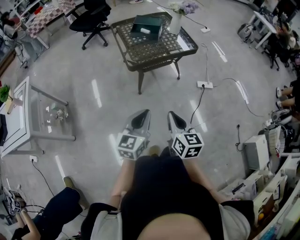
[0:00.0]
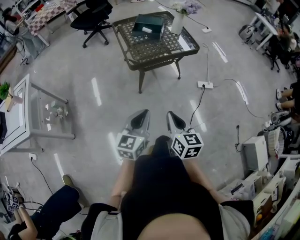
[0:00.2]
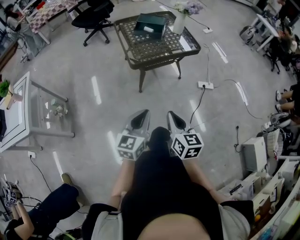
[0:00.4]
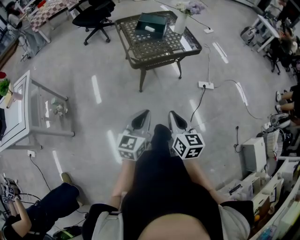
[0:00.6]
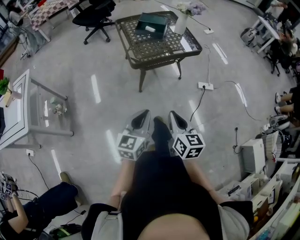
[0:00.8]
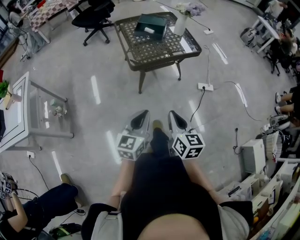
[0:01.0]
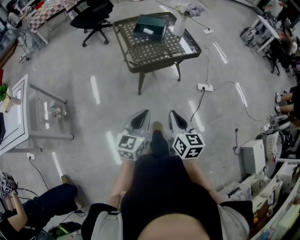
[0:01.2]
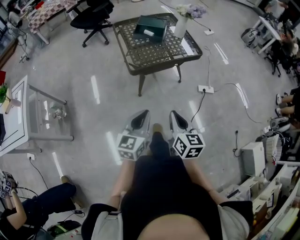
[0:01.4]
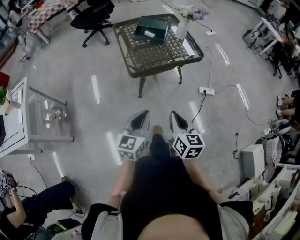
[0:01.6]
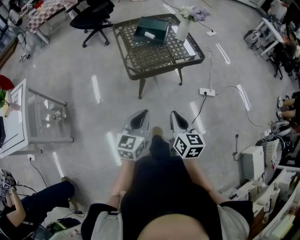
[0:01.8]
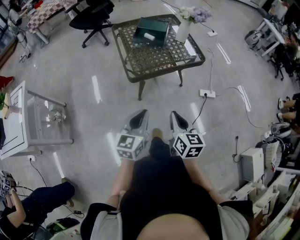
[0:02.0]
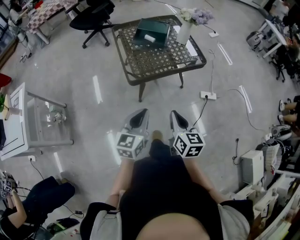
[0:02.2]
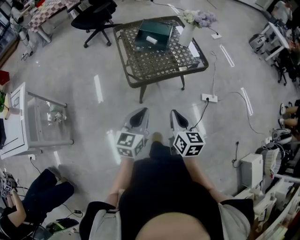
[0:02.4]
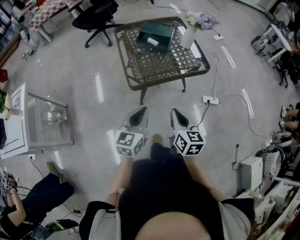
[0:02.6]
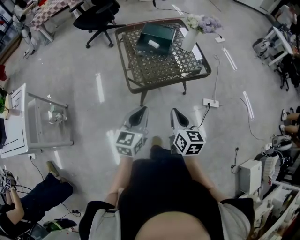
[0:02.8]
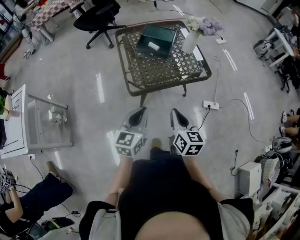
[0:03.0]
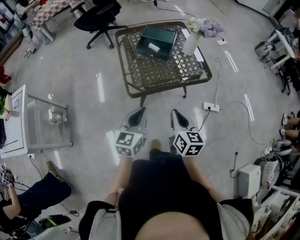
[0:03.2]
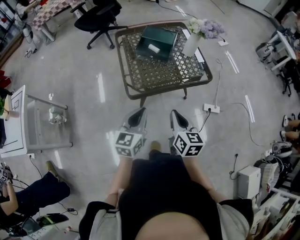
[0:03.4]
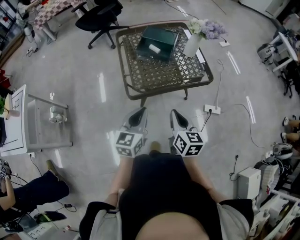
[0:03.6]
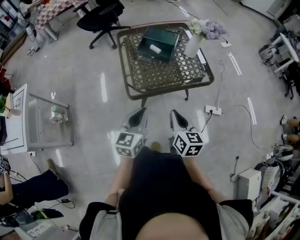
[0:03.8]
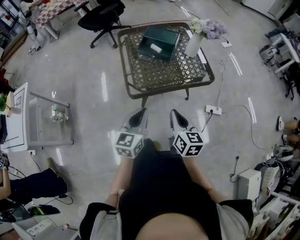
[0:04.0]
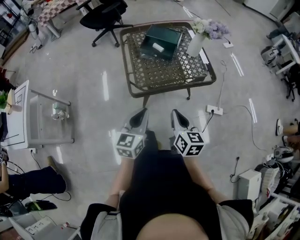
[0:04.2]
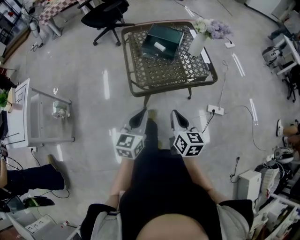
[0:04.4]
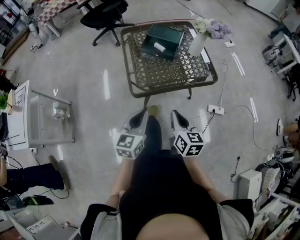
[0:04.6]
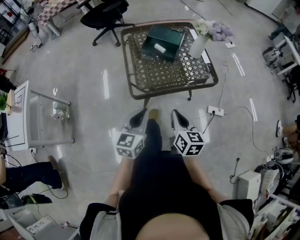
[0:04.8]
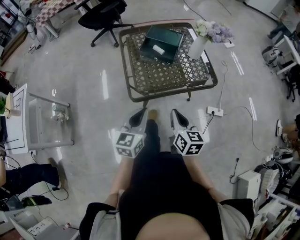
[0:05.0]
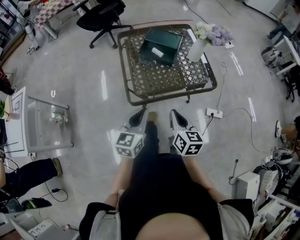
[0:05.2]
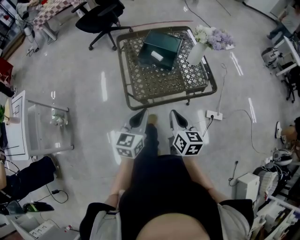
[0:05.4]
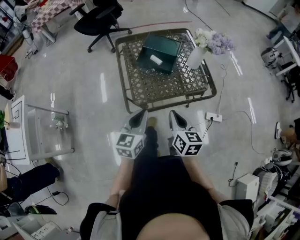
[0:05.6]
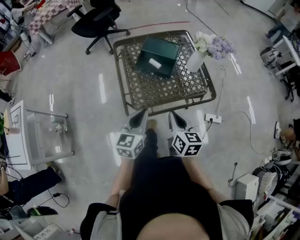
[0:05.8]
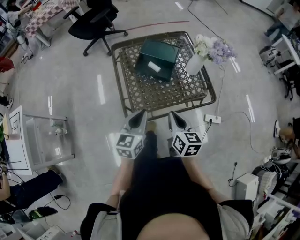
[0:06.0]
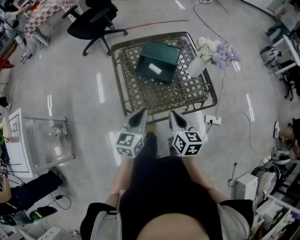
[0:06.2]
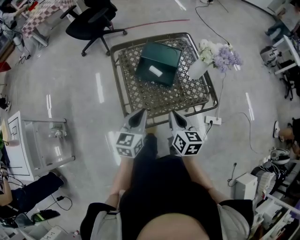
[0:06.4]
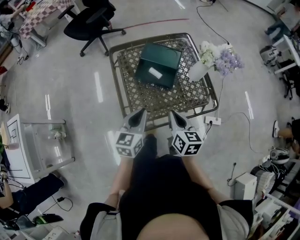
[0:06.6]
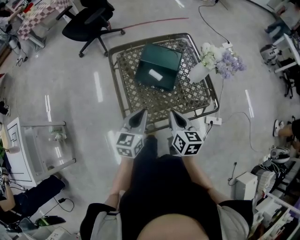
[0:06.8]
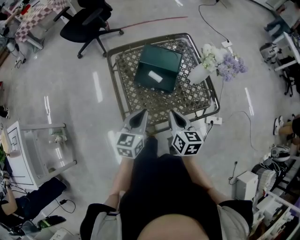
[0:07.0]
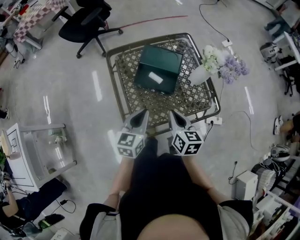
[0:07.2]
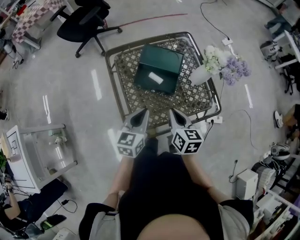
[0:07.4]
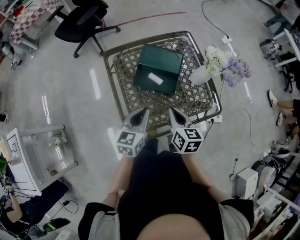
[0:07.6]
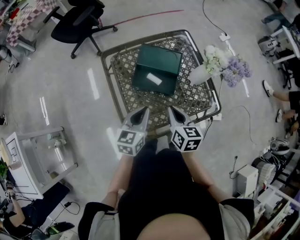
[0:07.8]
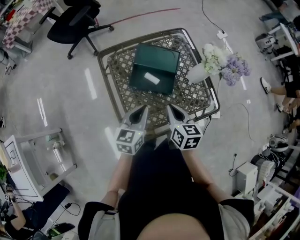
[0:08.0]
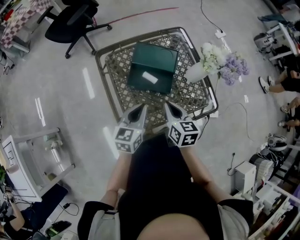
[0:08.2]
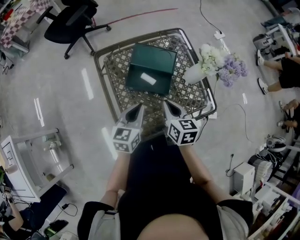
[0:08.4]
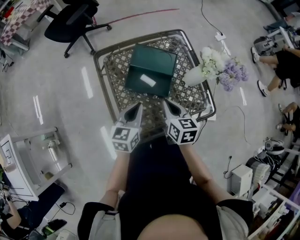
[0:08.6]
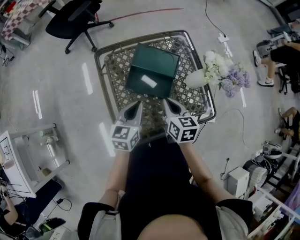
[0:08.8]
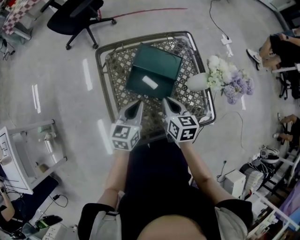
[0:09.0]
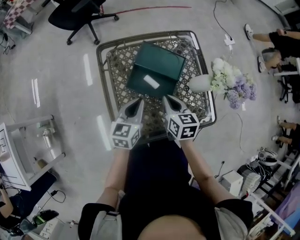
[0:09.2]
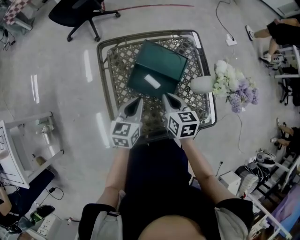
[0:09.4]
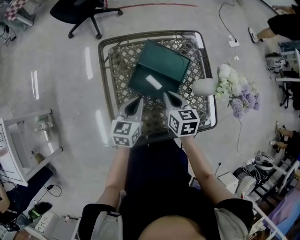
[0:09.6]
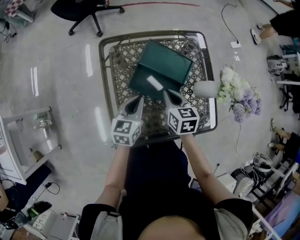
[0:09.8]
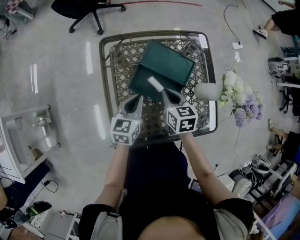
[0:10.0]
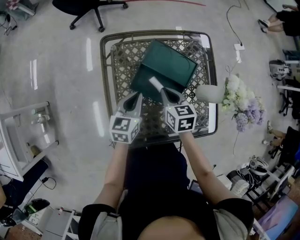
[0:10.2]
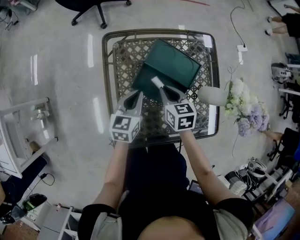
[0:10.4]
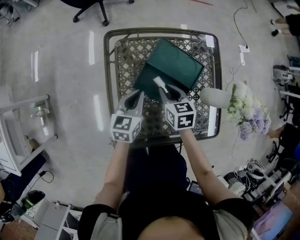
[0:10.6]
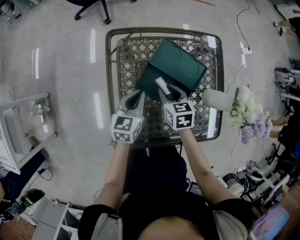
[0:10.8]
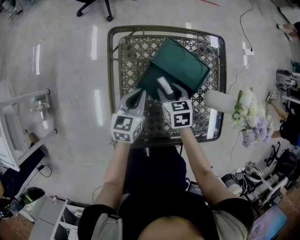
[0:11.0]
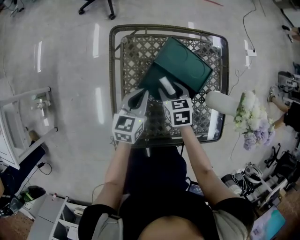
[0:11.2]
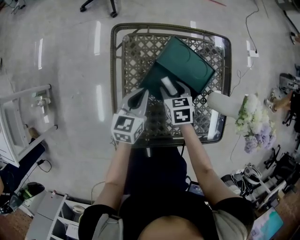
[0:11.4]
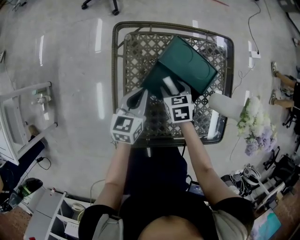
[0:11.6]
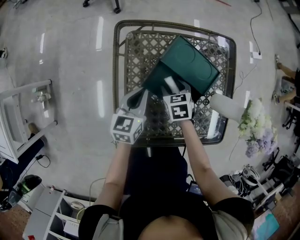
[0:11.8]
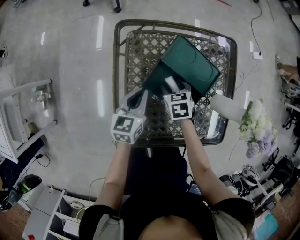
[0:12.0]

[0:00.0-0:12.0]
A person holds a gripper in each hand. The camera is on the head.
0:00.0 to 0:01.6: The grippers both shift forward by about 10 cm.
0:01.6 to 0:03.0: Both grippers move forward, some 20 cm.
0:03.0 to 0:04.4: There are only small adjustments of the grippers.
0:04.4 to 0:06.0: Both grippers move forward, roughly 20 cm.
0:06.0 to 0:07.6: Both grippers move forward, approximately 15 cm.
0:07.6 to 0:09.0: Both grippers move forward, some 10 cm.
0:09.0 to 0:10.4: The two grippers go approximately 10 cm forward and downward.
0:10.4 to 0:12.0: The right gripper moves downward, some 10 cm, rotates approximately 20 degrees, and opens its fingers.

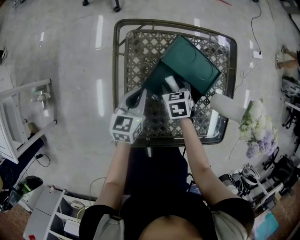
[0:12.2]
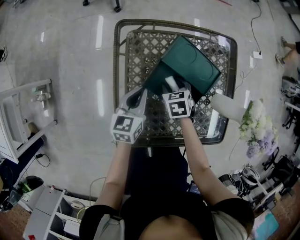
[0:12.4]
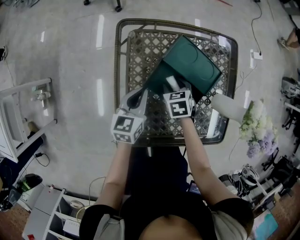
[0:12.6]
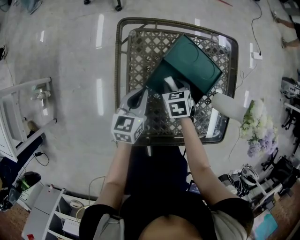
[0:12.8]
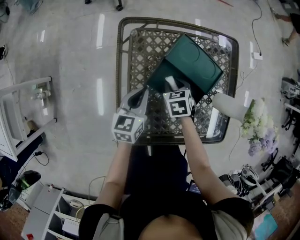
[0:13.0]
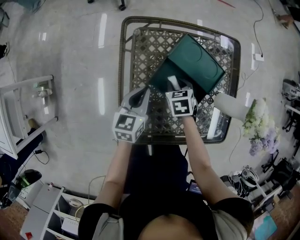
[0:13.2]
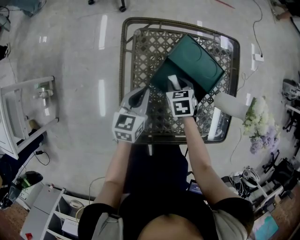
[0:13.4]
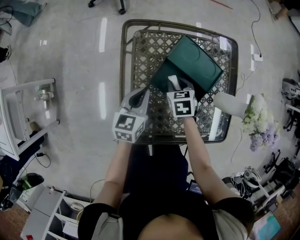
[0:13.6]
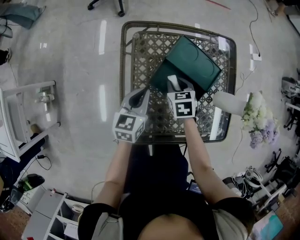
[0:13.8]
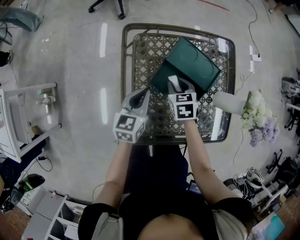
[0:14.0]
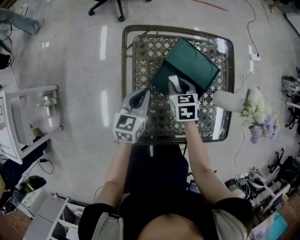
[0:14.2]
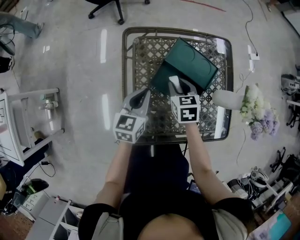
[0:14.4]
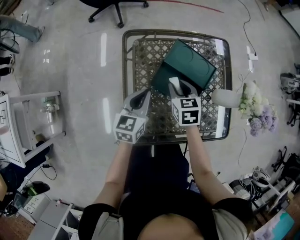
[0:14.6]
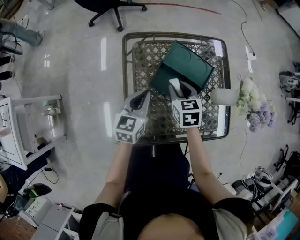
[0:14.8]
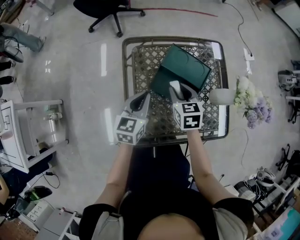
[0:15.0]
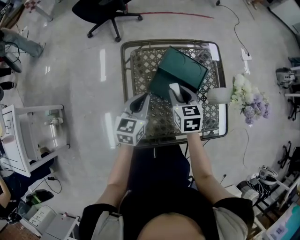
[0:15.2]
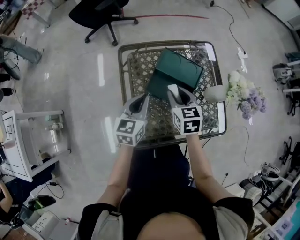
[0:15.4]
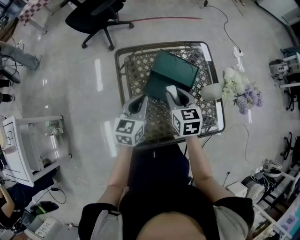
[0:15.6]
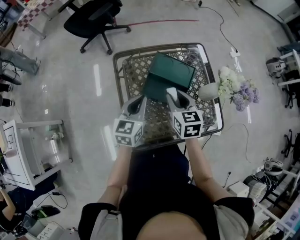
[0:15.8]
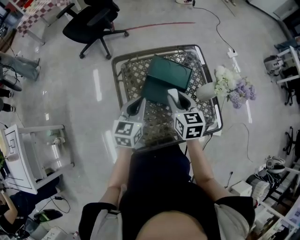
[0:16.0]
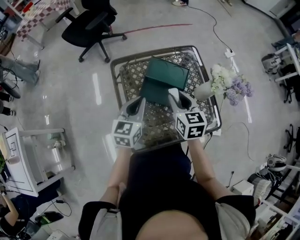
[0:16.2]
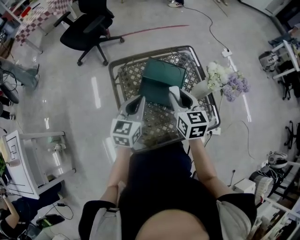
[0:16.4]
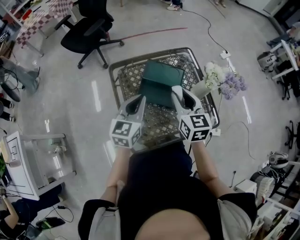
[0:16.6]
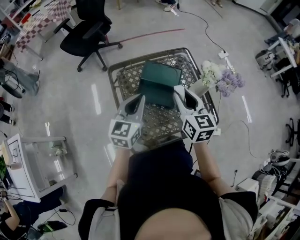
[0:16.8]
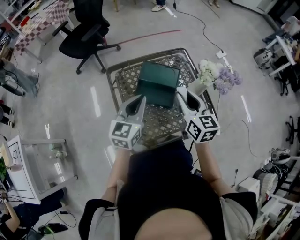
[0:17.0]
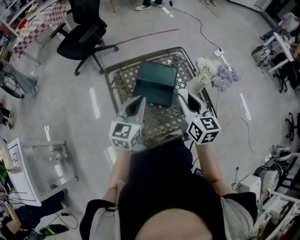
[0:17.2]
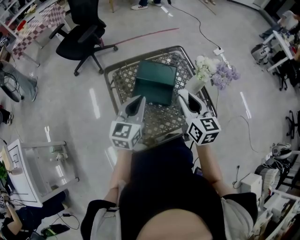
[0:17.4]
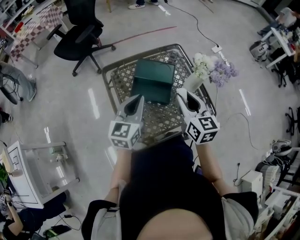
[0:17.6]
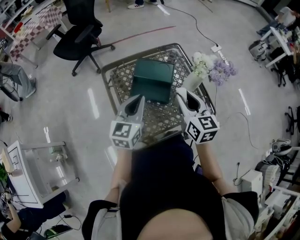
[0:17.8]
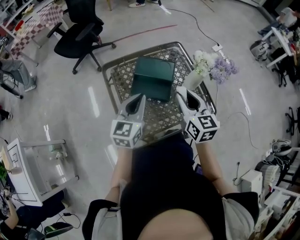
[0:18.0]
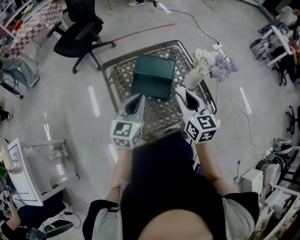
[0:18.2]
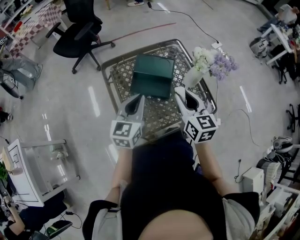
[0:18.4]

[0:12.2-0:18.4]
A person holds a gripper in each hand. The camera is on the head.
0:12.2 to 0:13.8: The right gripper closes up.
0:13.8 to 0:15.4: The right gripper goes approximately 15 cm upward, and swivels some 20 degrees; the left gripper shifts approximately 10 cm upward.
0:15.4 to 0:16.8: The left gripper goes about 10 cm upward. Meanwhile the right gripper heads upward, to the right and backward, covering approximately 15 cm, and changes its angle by approximately 20 degrees.
0:16.8 to 0:18.4: The right gripper goes roughly 5 cm backward.

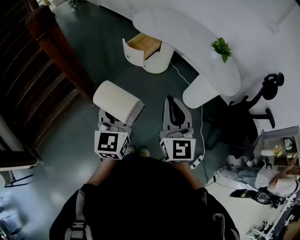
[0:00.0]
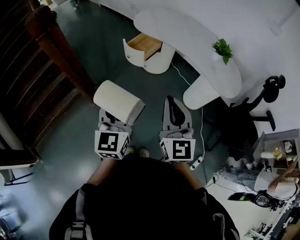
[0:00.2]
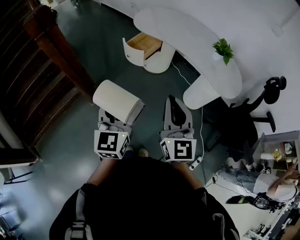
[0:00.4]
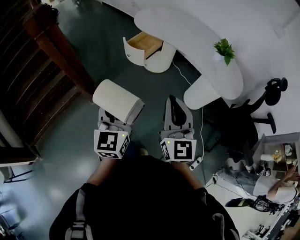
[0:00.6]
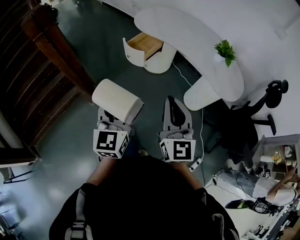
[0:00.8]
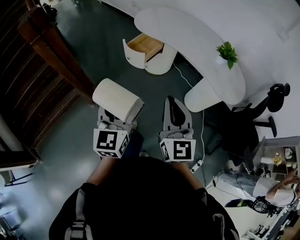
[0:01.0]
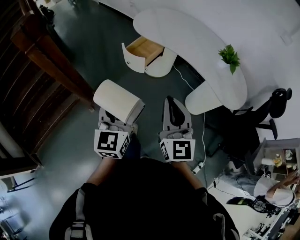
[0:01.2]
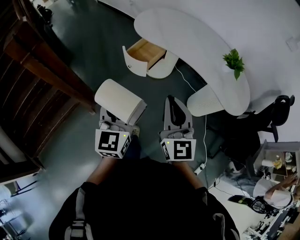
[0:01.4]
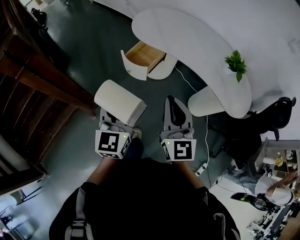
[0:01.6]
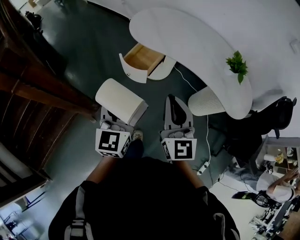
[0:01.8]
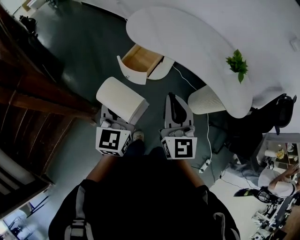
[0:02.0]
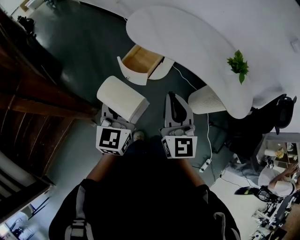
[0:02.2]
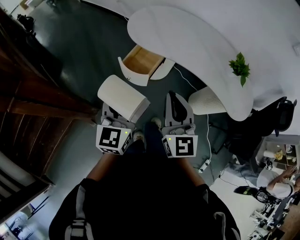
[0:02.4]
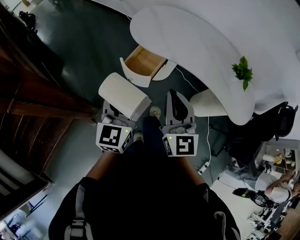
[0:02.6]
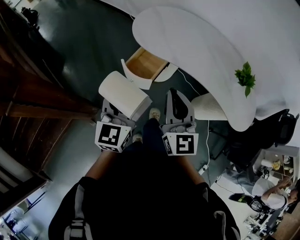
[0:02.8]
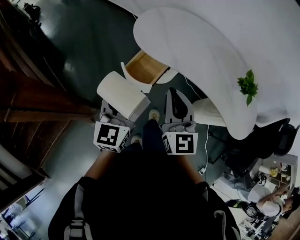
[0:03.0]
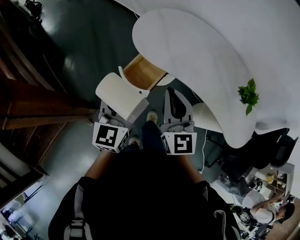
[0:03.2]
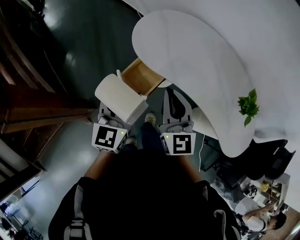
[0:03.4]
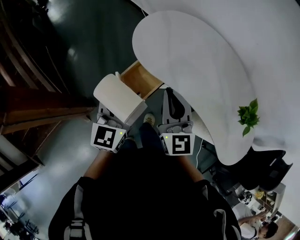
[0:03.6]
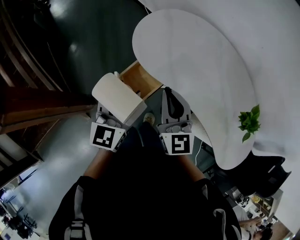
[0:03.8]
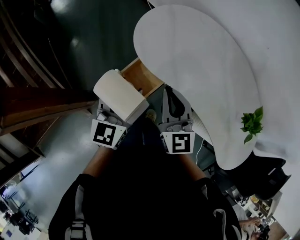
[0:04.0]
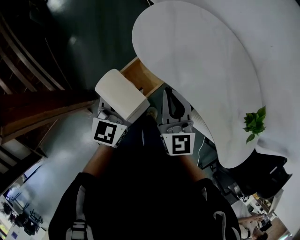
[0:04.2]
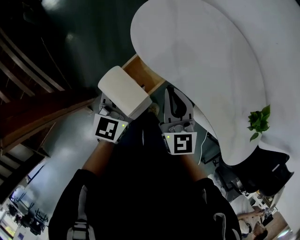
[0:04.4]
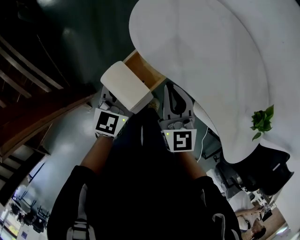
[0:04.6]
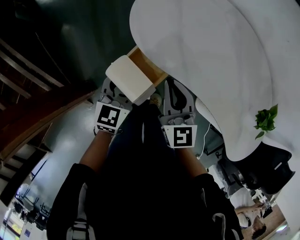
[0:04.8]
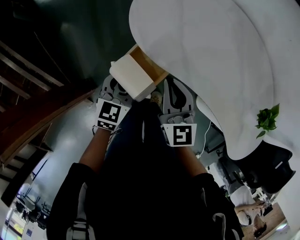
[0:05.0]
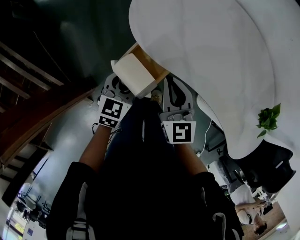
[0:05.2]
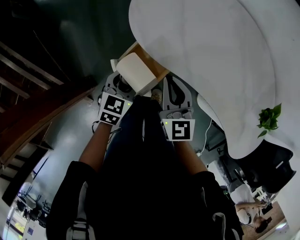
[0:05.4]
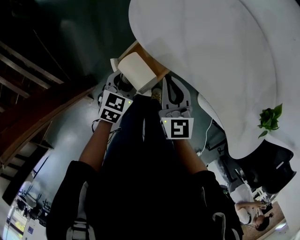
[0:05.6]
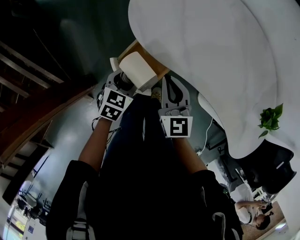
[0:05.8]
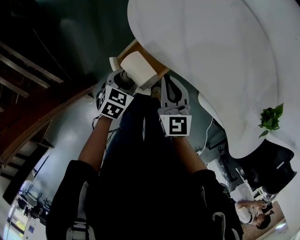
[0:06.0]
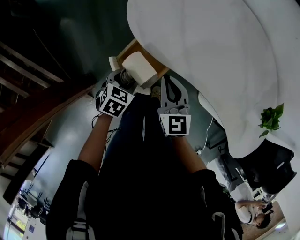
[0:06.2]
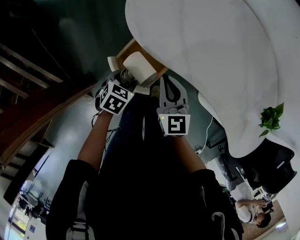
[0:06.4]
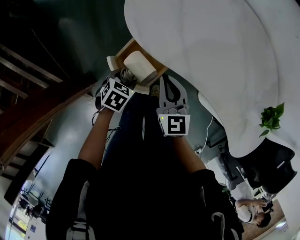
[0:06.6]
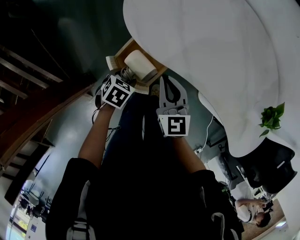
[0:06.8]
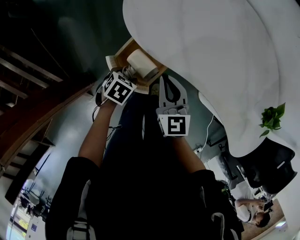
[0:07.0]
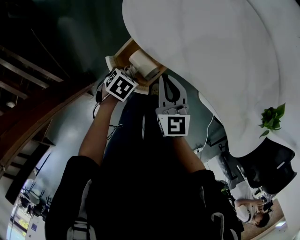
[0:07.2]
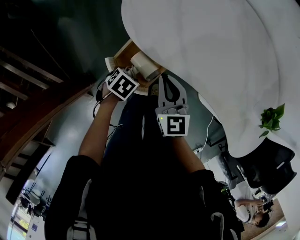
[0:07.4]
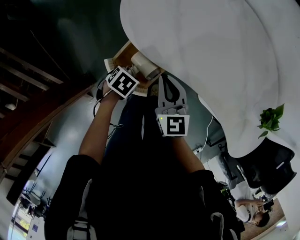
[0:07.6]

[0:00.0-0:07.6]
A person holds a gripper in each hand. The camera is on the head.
0:00.0 to 0:01.6: Both grippers move forward, approximately 25 cm.
0:01.6 to 0:03.0: The grippers both shift forward by approximately 20 cm.
0:03.0 to 0:04.6: The grippers both shift forward and downward by roughly 25 cm.
0:04.6 to 0:06.0: The left gripper travels downward by about 15 cm, and angles its fingers downward, by some 40 degrees, while the right gripper travels downward by roughly 10 cm.
0:06.0 to 0:07.6: The left gripper heads downward, covering about 5 cm, and rotates roughly 30 degrees.
